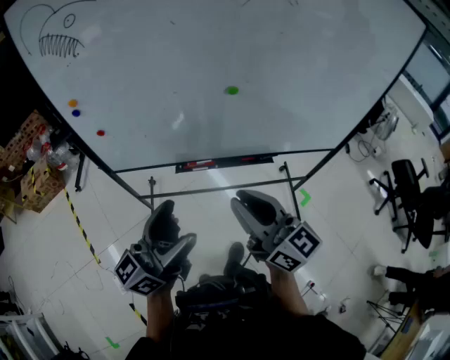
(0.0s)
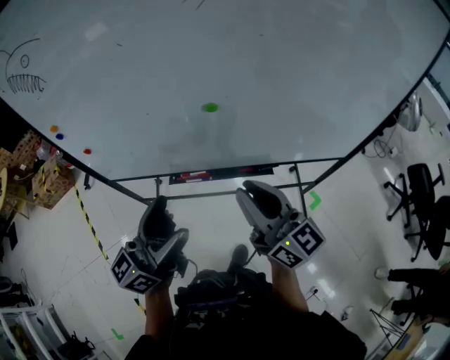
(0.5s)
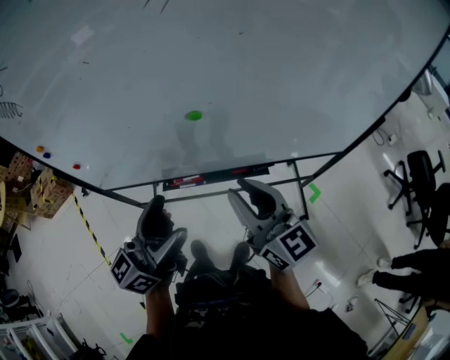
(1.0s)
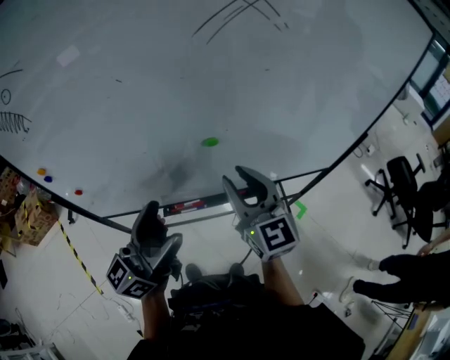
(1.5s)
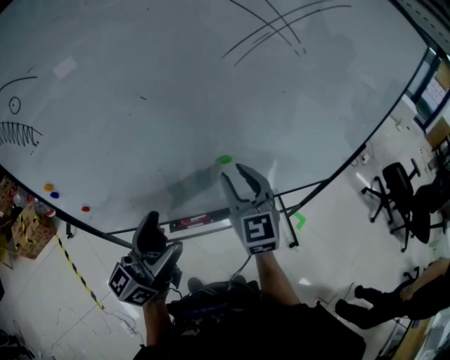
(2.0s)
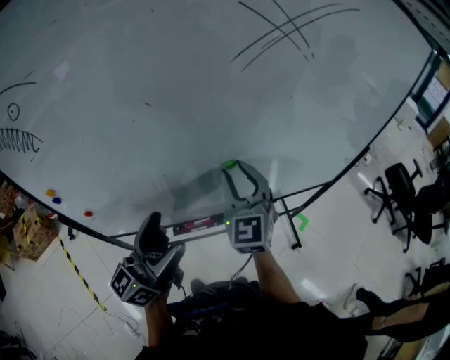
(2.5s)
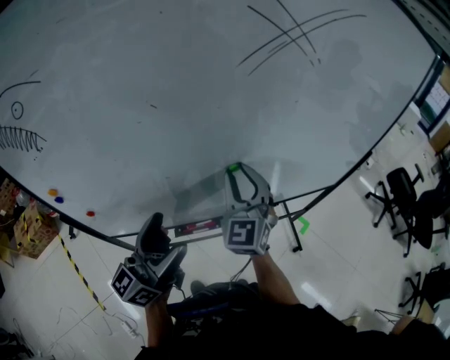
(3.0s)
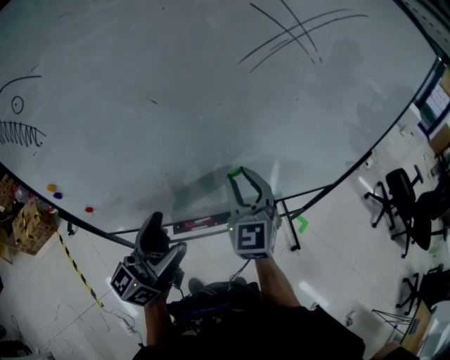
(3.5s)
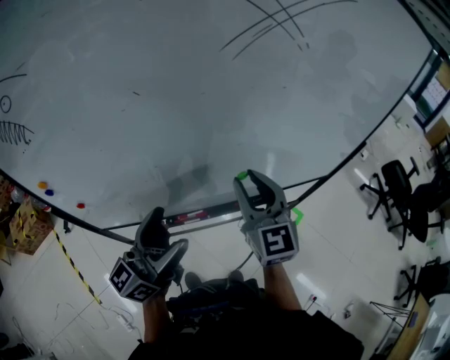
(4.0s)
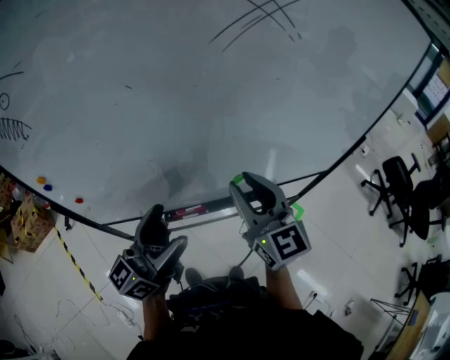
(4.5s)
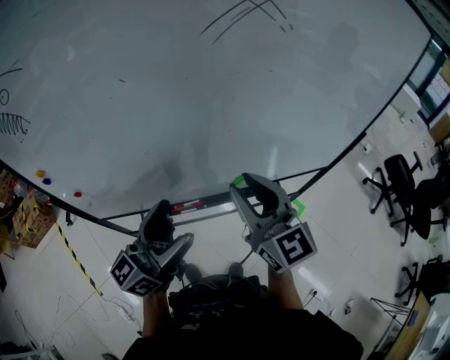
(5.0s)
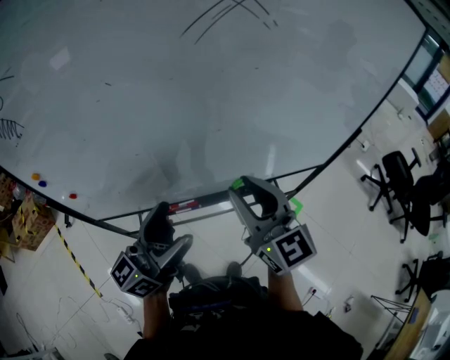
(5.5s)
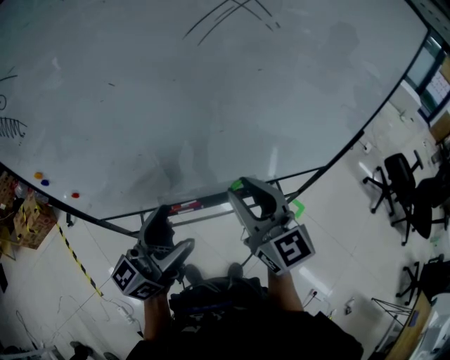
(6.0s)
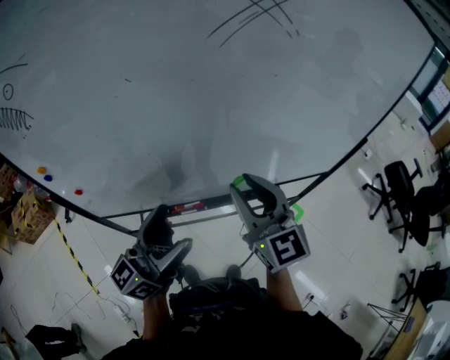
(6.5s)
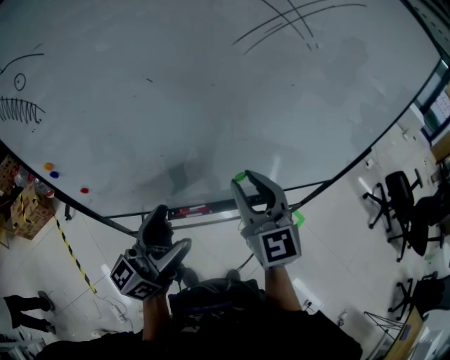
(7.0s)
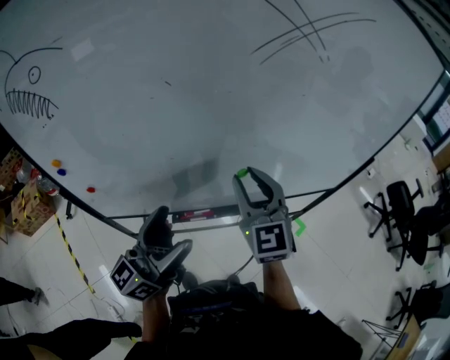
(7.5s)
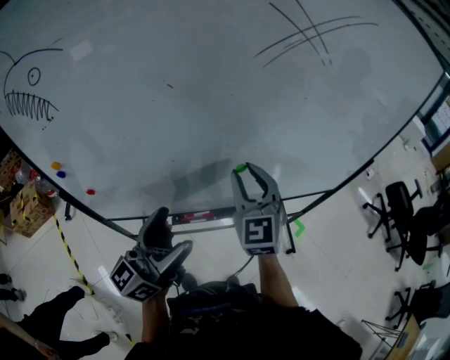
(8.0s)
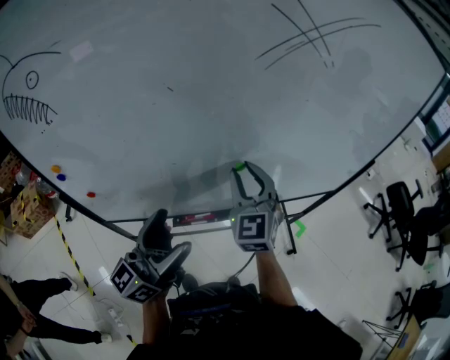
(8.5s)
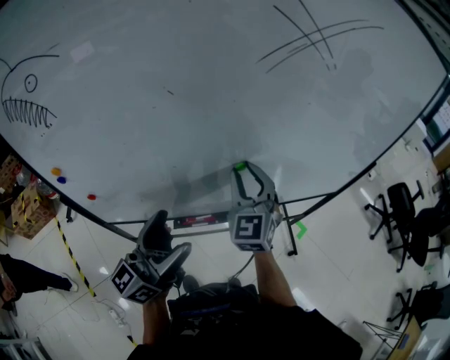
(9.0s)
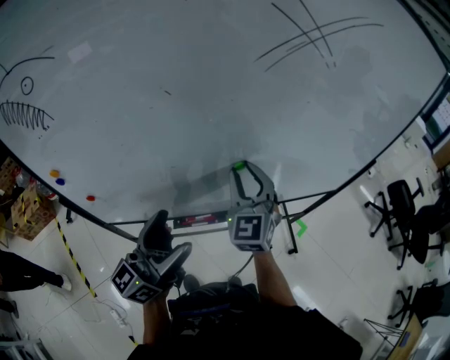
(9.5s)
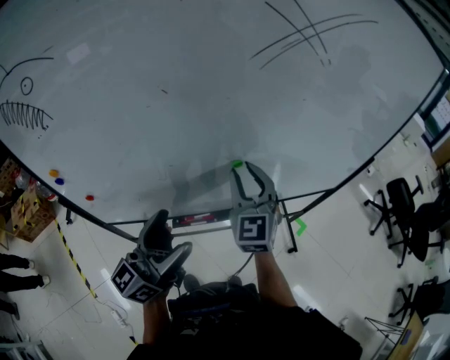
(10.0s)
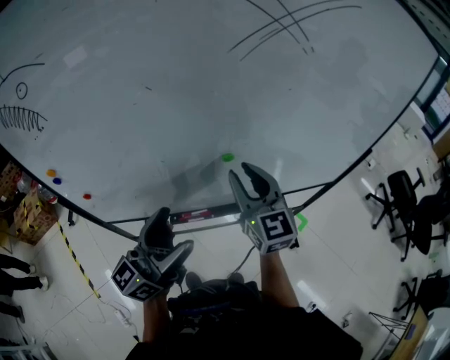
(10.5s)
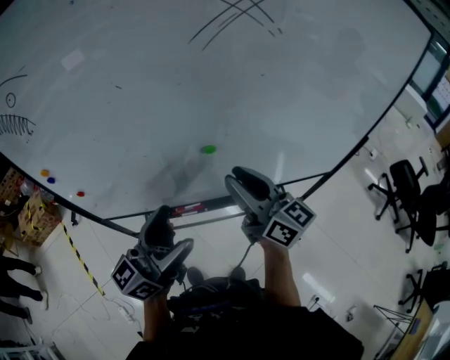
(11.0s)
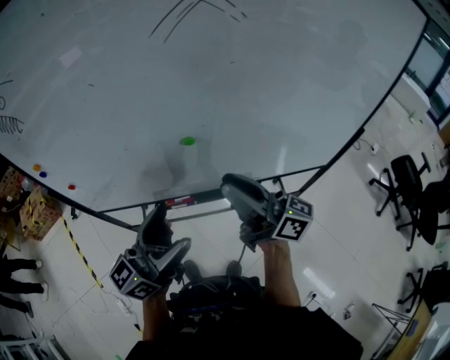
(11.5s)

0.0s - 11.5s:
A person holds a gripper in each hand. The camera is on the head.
0.0s - 2.0s: The two grippers go roughly 20 cm forward. The right gripper changes its angle by approximately 50 degrees.
2.0s - 4.0s: The grippers make only small movements.
4.0s - 6.0s: The left gripper is displaced to the right by about 5 cm; the right gripper travels backward by some 5 cm.
6.0s - 7.5s: The left gripper is displaced to the left by about 5 cm. The right gripper goes roughly 10 cm to the left and forward, and changes its angle by some 20 degrees.
7.5s - 9.5s: The right gripper moves forward, approximately 5 cm.
9.5s - 11.5s: The left gripper heads to the right, covering some 10 cm; the right gripper heads backward and to the right, covering roughly 15 cm, and swivels approximately 90 degrees.

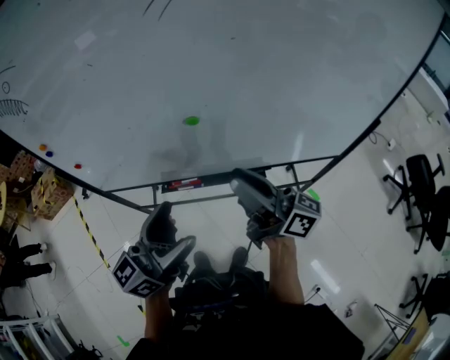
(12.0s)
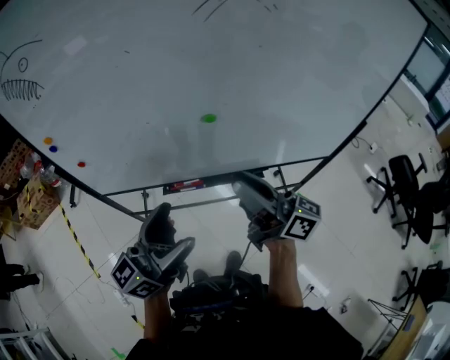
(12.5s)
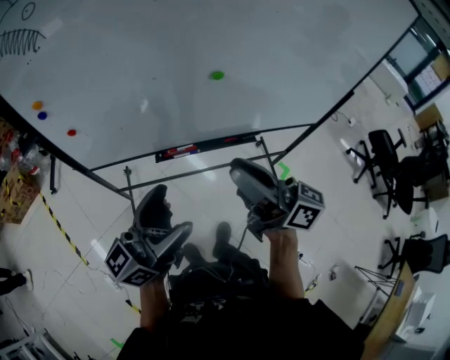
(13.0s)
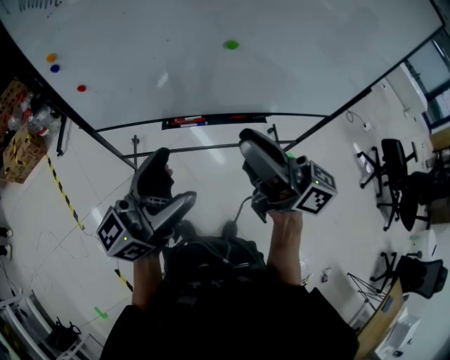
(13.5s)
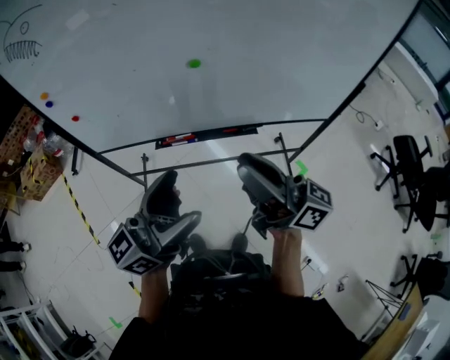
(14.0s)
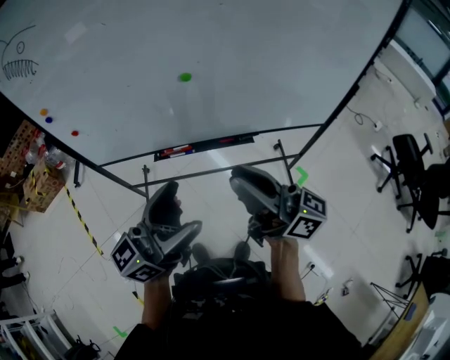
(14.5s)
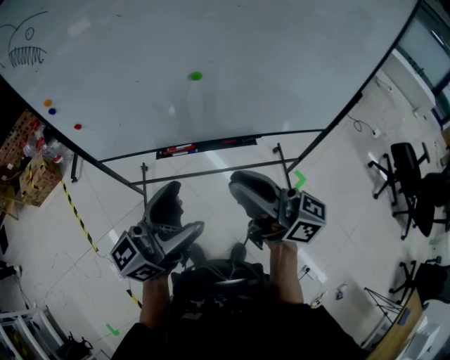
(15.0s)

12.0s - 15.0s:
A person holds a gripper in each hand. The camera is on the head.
12.0s - 13.5s: The two grippers go some 15 cm backward and to the left.
13.5s - 15.0s: The grippers both shift to the right by roughly 10 cm.

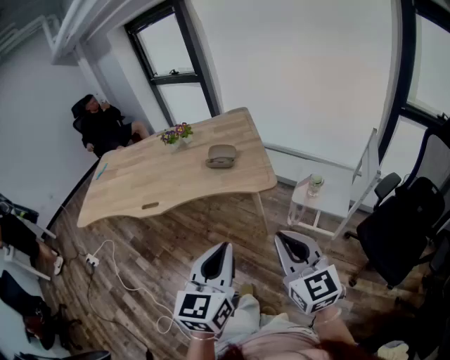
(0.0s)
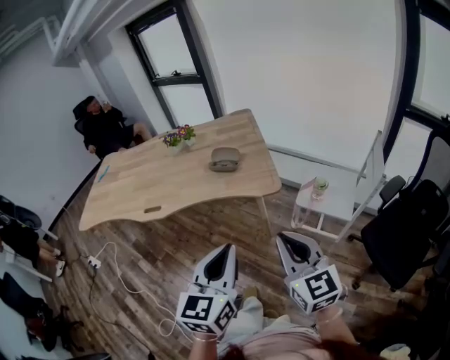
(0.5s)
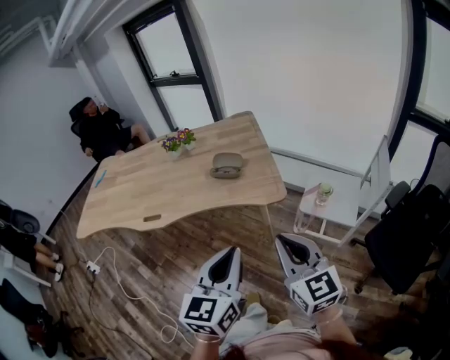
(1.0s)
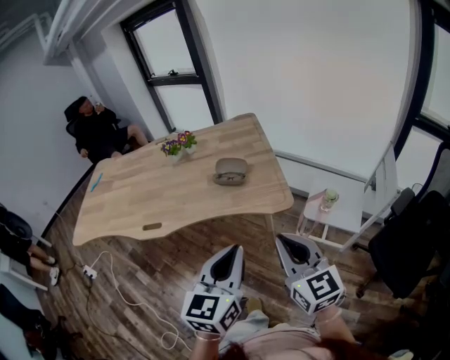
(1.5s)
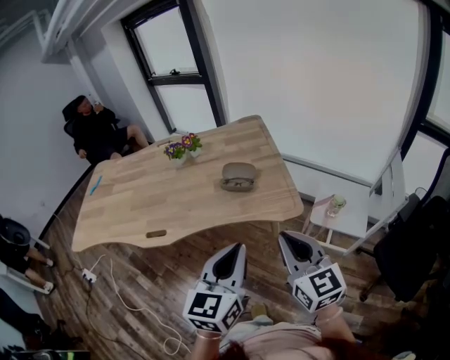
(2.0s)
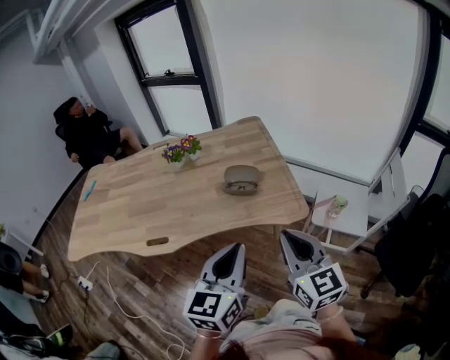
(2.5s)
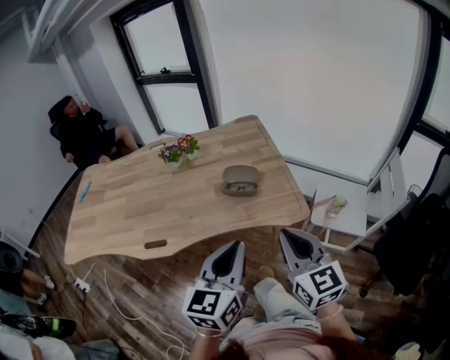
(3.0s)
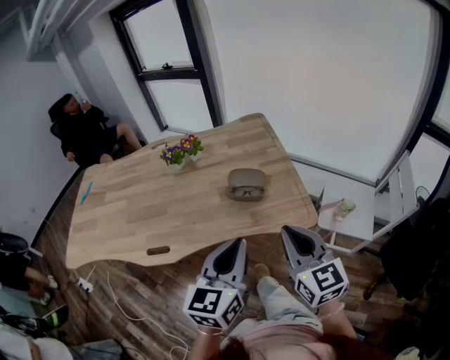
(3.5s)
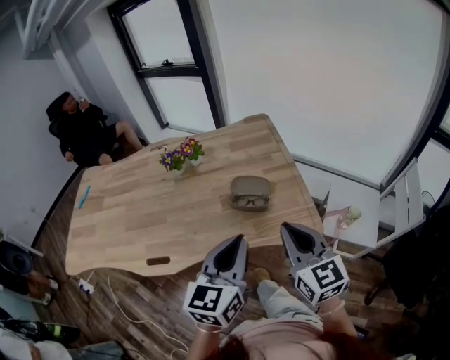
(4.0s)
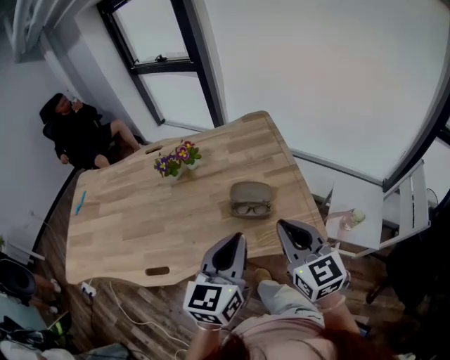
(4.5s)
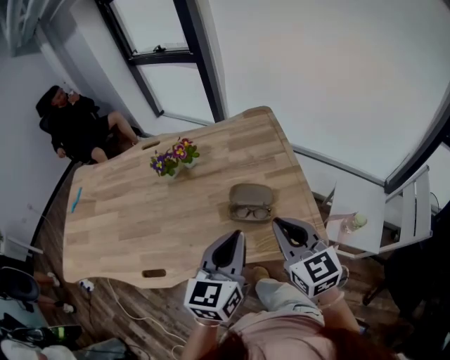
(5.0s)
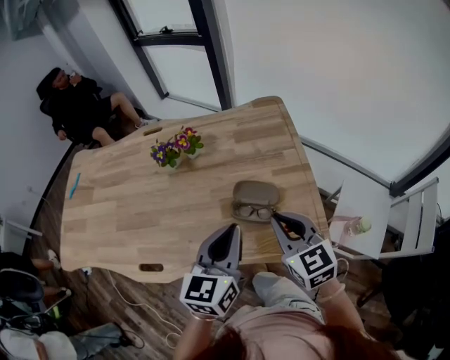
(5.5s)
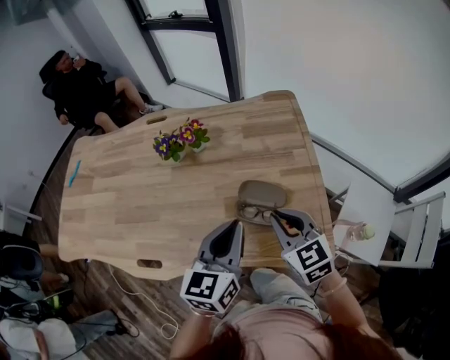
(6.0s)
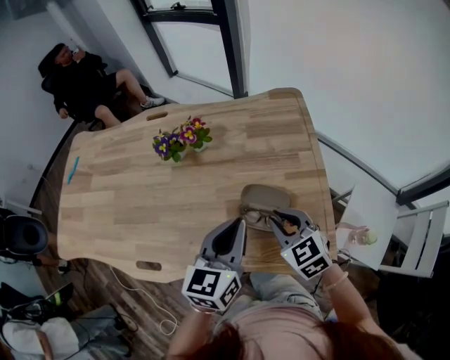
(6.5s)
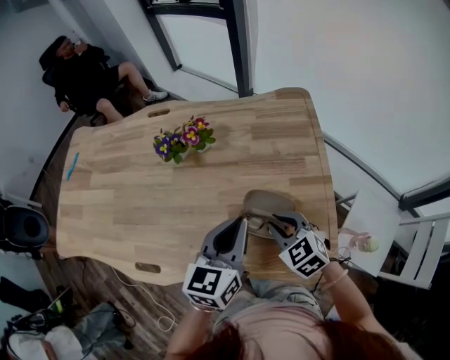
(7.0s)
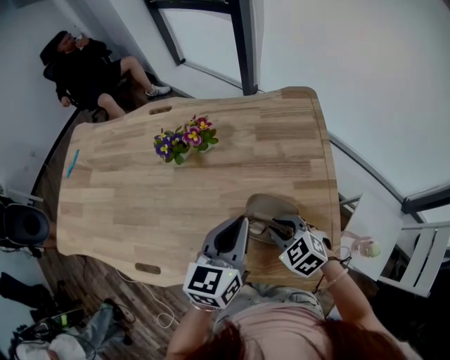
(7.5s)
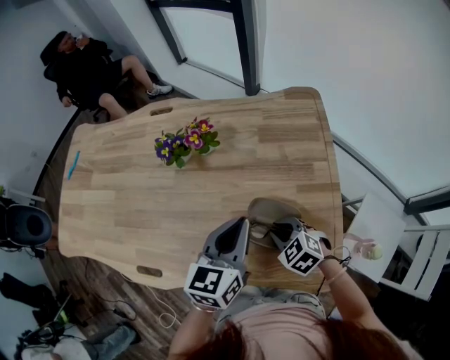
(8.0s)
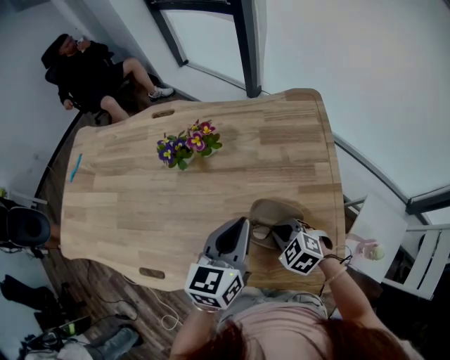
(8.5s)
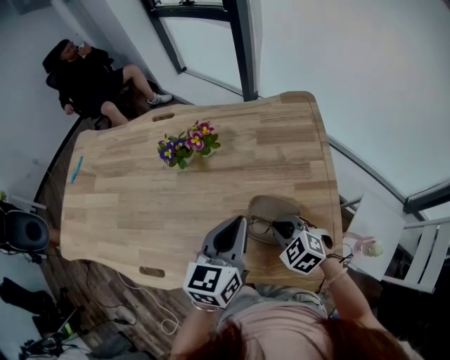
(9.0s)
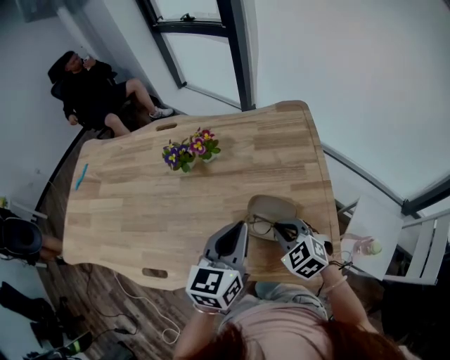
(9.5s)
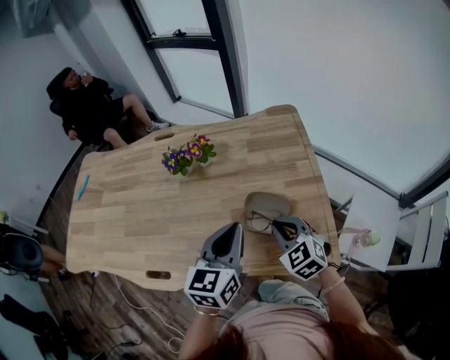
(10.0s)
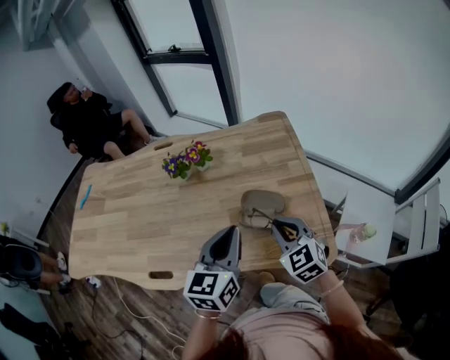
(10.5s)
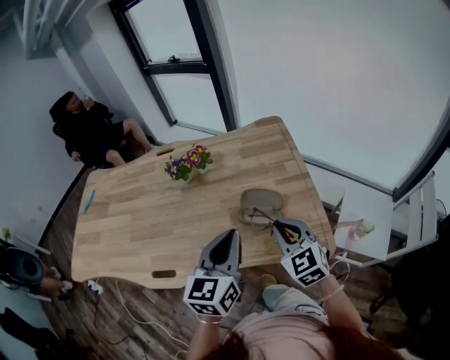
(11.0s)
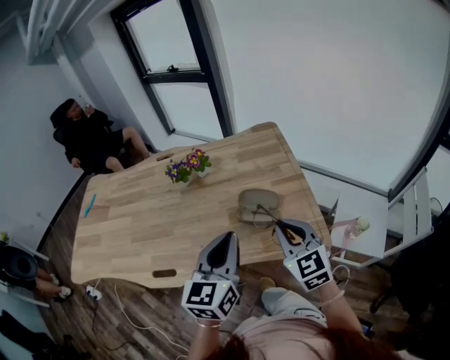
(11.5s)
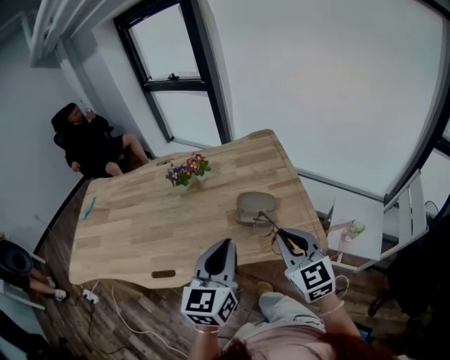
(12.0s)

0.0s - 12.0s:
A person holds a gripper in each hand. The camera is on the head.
0.0s - 2.0s: The right gripper is displaced forward and to the left by roughly 20 cm. Meanwhile the left gripper goes roughly 20 cm forward.
2.0s - 4.0s: The grippers both shift forward by about 15 cm.
4.0s - 6.0s: Both grippers move forward and downward, approximately 20 cm. The right gripper rotates about 30 degrees.
6.0s - 8.0s: The right gripper shifts about 15 cm downward, and swivels approximately 40 degrees. The left gripper goes some 10 cm forward and downward.
8.0s - 10.0s: The right gripper moves upward, approximately 10 cm, and turns by roughly 20 degrees, while the left gripper is displaced backward by approximately 5 cm.
10.0s - 12.0s: The two grippers go about 20 cm backward and upward. The right gripper swivels about 30 degrees.
